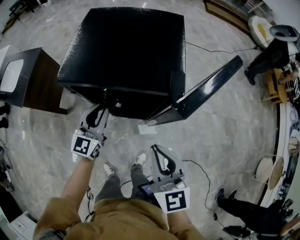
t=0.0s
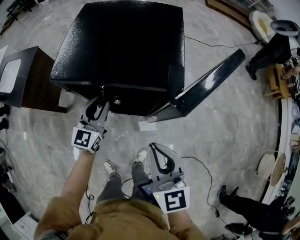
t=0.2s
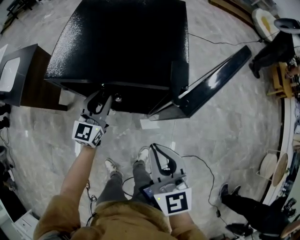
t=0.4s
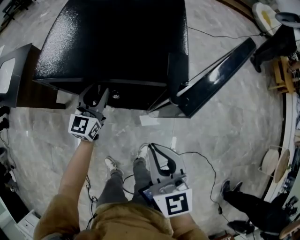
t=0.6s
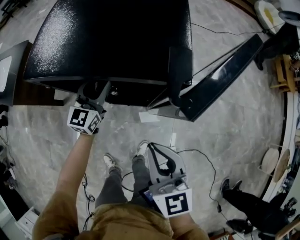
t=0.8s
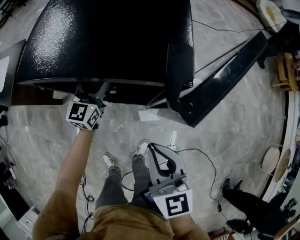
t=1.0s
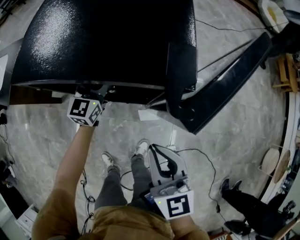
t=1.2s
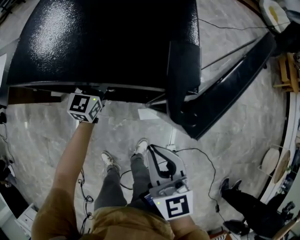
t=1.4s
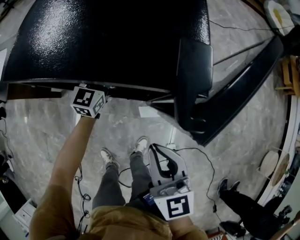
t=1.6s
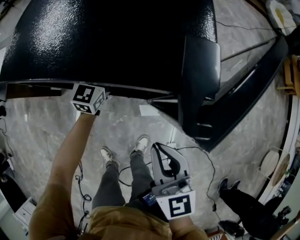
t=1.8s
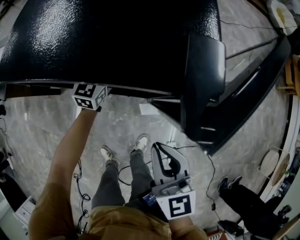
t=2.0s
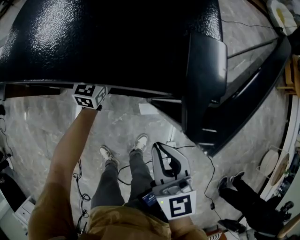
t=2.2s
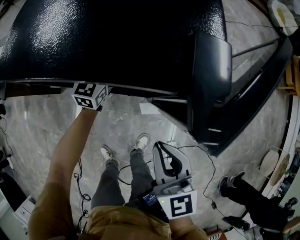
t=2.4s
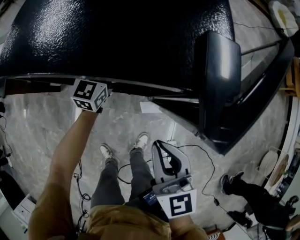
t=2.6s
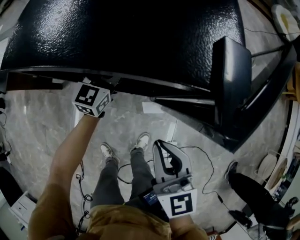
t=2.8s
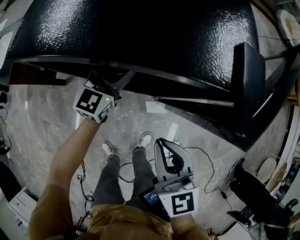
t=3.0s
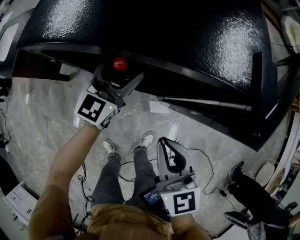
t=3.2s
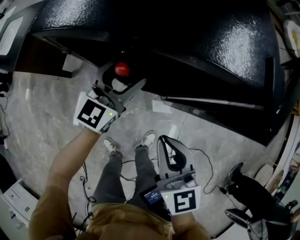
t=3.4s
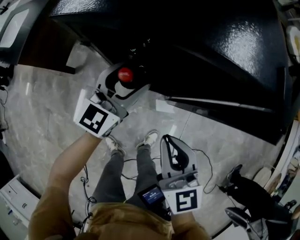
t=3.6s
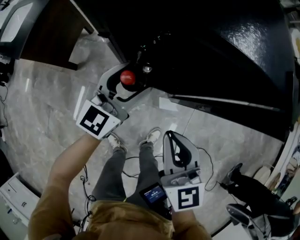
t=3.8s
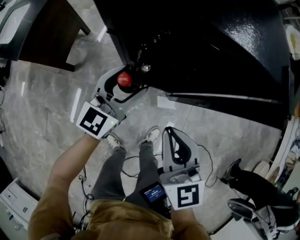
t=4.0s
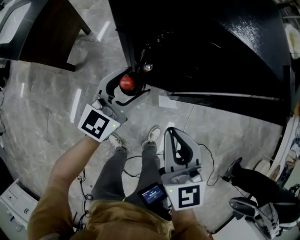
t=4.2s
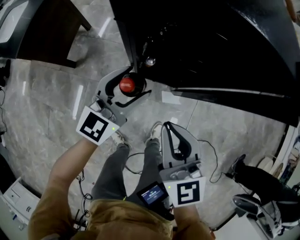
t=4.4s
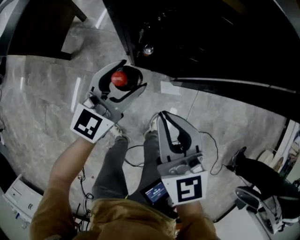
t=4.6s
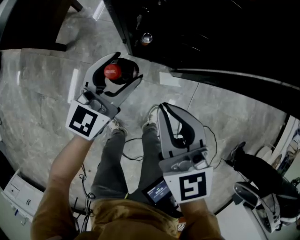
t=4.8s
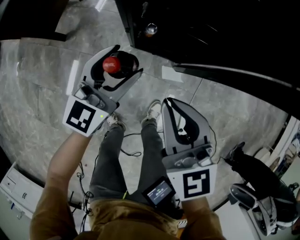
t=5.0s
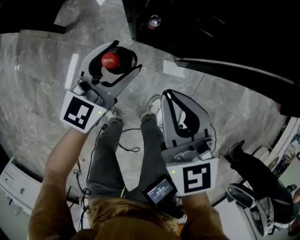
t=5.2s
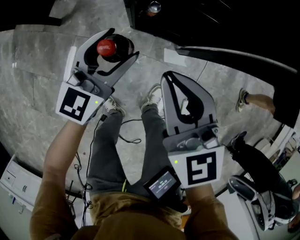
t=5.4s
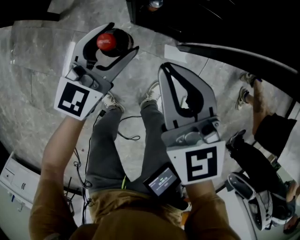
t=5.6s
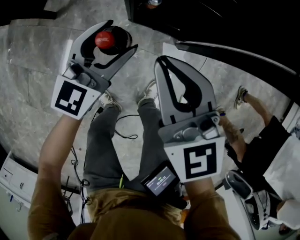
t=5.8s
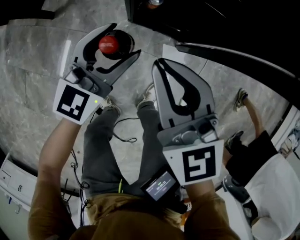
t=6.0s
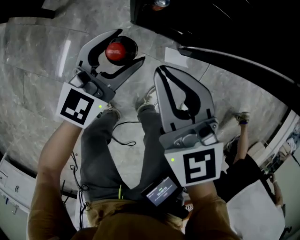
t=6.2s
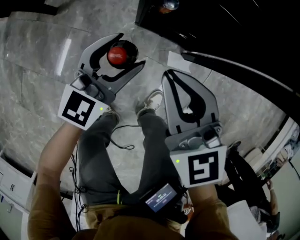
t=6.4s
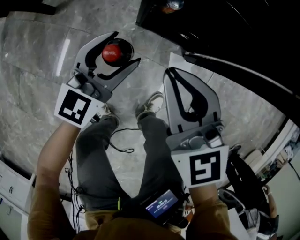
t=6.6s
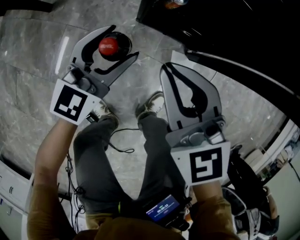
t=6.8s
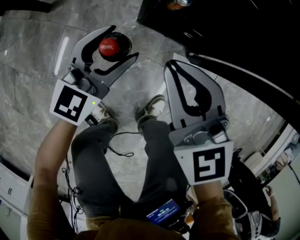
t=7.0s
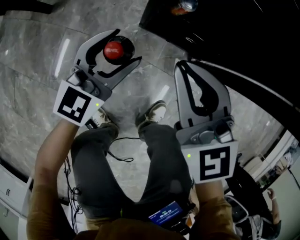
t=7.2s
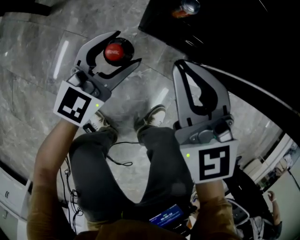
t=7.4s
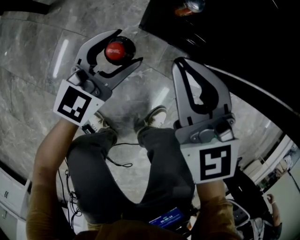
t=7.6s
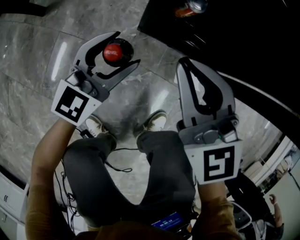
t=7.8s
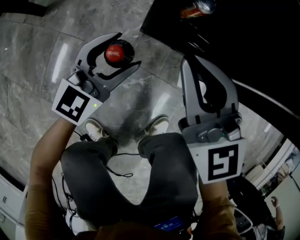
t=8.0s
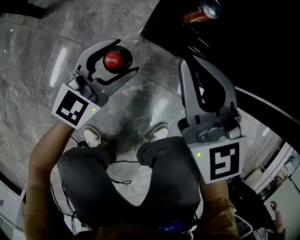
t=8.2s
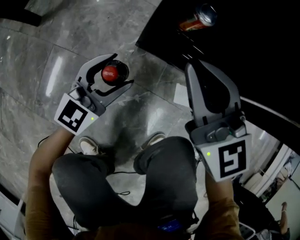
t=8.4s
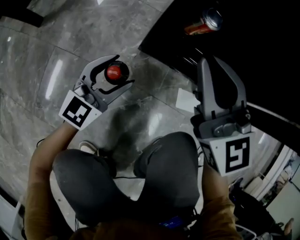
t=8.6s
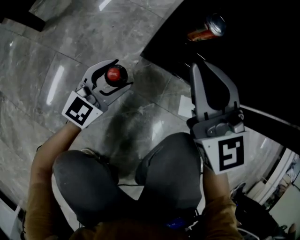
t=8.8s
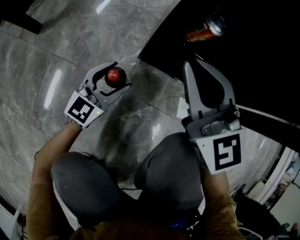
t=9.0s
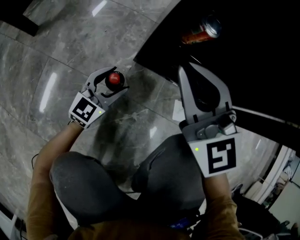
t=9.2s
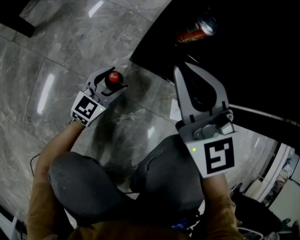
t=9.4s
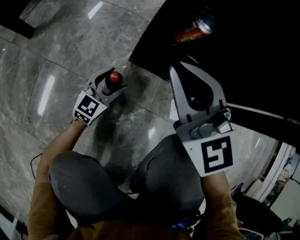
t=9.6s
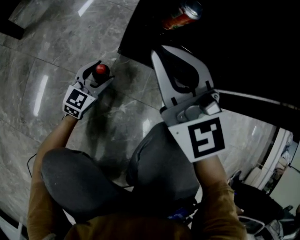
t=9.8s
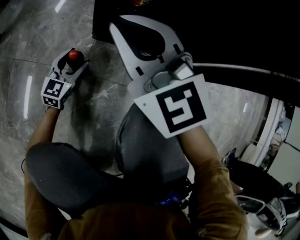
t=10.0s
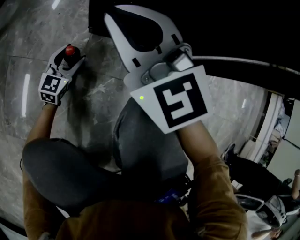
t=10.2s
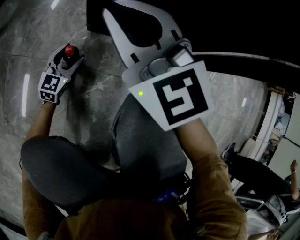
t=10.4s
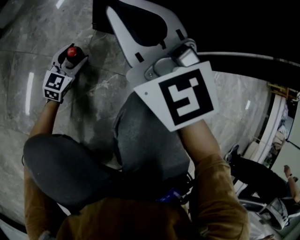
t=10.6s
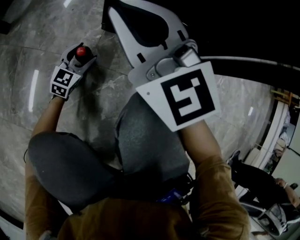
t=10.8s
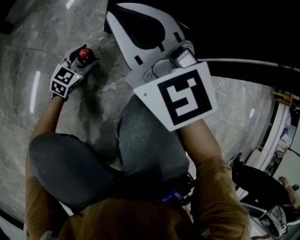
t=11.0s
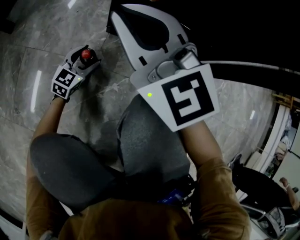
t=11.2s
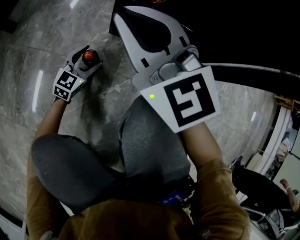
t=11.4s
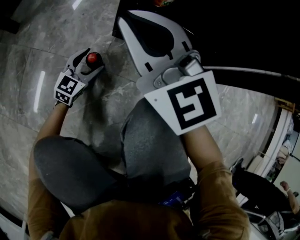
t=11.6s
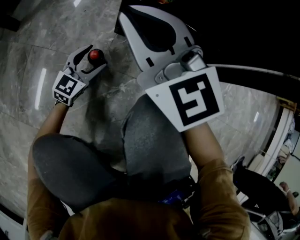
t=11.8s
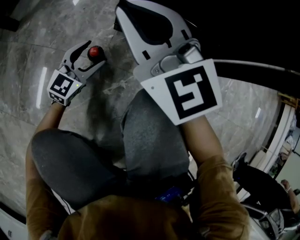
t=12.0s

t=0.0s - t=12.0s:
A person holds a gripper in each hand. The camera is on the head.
t=0.0s - t=1.6s: The left gripper moves forward and downward, roughly 25 cm, and opens its fingers. The right gripper heads downward and forward, covering roughly 15 cm.
t=1.6s - t=3.0s: The right gripper moves to the left, about 5 cm.
t=3.0s - t=4.4s: The right gripper moves to the left, some 20 cm, while the left gripper shifts approximately 25 cm backward and to the left.
t=4.4s - t=6.0s: The grippers both shift downward by roughly 25 cm.
t=6.0s - t=7.6s: The right gripper heads forward, covering roughly 5 cm, and moves some 15 cm downward and comes back. The left gripper moves about 20 cm downward and comes back.
t=7.6s - t=9.0s: The right gripper moves downward and forward, some 10 cm, while the left gripper heads downward, covering approximately 20 cm.
t=9.0s - t=10.4s: The left gripper goes approximately 10 cm downward.
t=10.4s - t=12.0s: The left gripper goes roughly 5 cm upward.

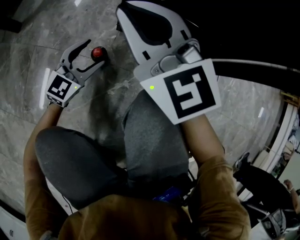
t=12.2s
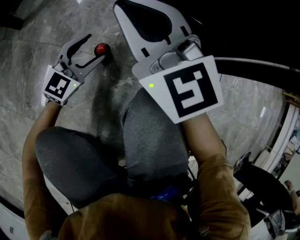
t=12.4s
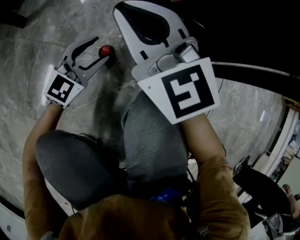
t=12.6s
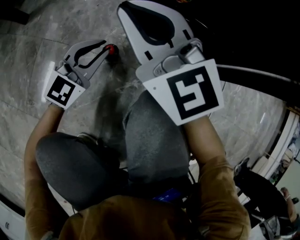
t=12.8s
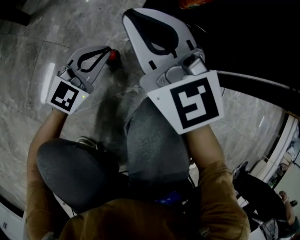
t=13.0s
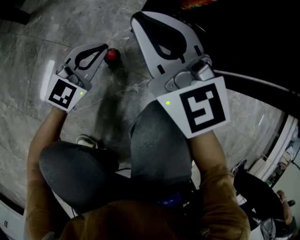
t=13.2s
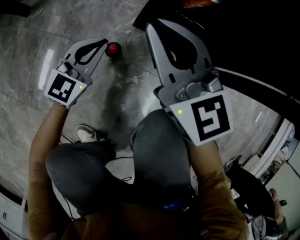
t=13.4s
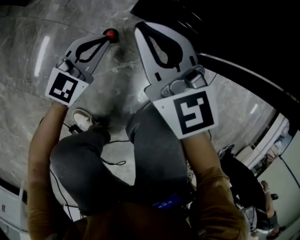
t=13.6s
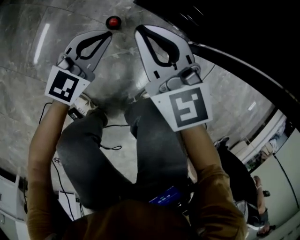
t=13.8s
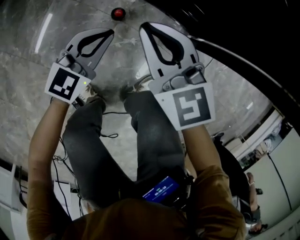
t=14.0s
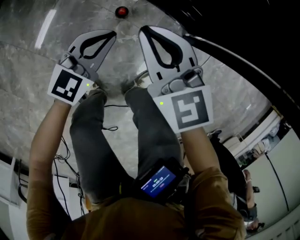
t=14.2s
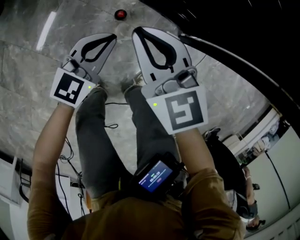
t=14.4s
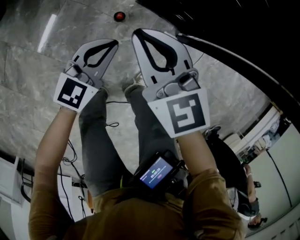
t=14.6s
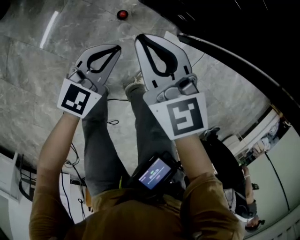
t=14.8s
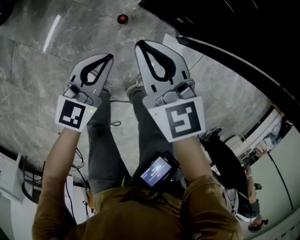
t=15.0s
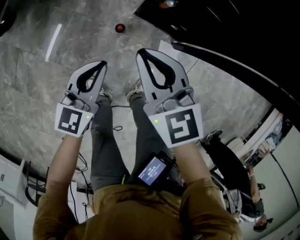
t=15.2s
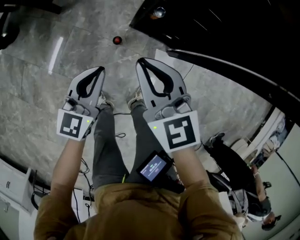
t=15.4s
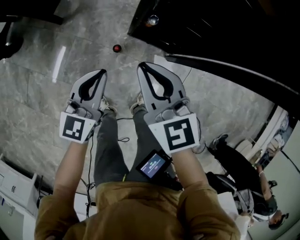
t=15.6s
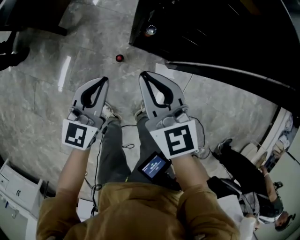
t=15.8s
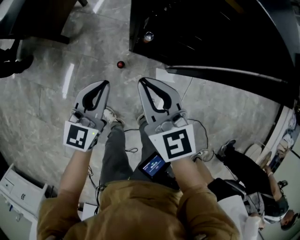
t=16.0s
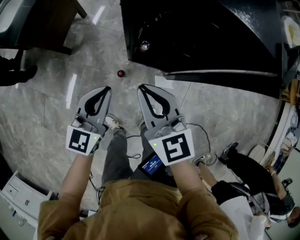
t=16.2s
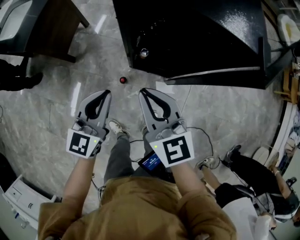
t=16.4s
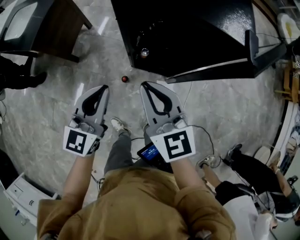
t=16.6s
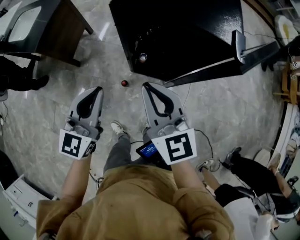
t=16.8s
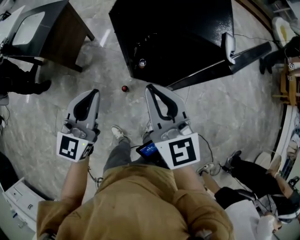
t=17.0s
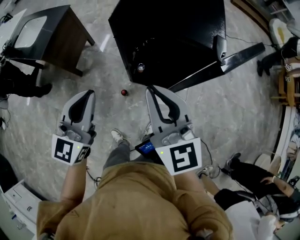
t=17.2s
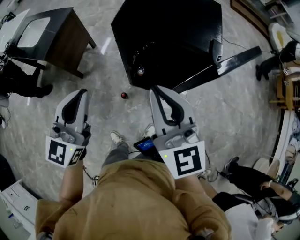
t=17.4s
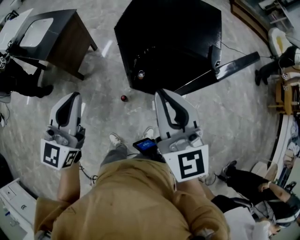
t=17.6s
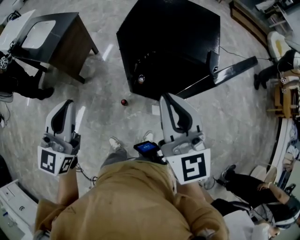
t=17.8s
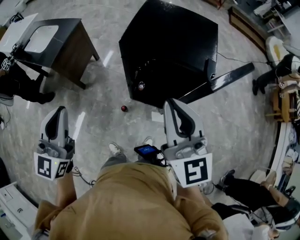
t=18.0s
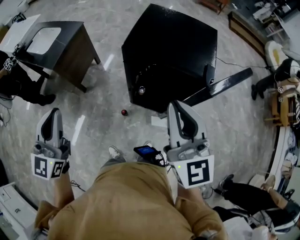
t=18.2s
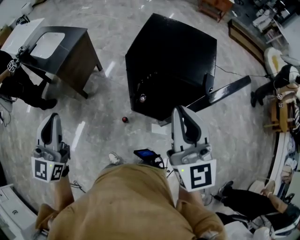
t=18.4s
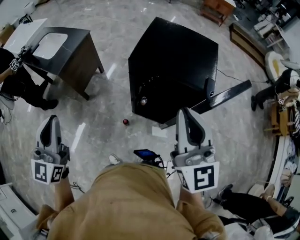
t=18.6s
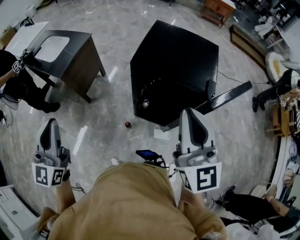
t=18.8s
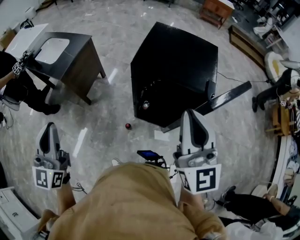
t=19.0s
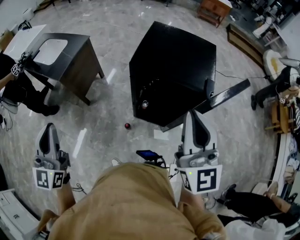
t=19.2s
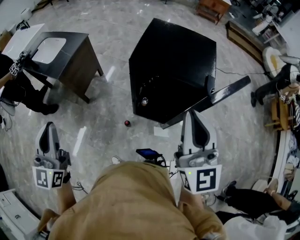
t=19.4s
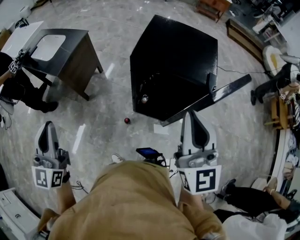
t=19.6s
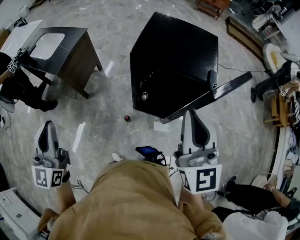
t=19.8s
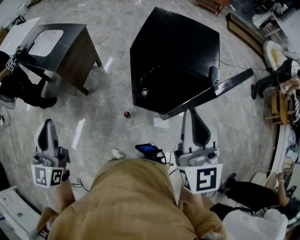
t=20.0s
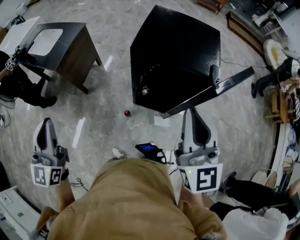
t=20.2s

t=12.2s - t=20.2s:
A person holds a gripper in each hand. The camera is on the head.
t=12.2s - t=13.8s: The left gripper heads upward, covering about 15 cm, and closes its fingers; the right gripper shifts about 5 cm backward, and changes its angle by roughly 20 degrees.
t=13.8s - t=15.4s: The grippers both shift upward by roughly 35 cm.
t=15.4s - t=17.0s: The left gripper heads upward, covering about 35 cm, and turns by some 20 degrees. The right gripper goes about 30 cm upward and to the right, and swivels about 20 degrees.
t=17.0s - t=18.6s: The right gripper goes roughly 15 cm upward, while the left gripper travels upward and to the left by some 25 cm, and changes its angle by roughly 20 degrees.
t=18.6s - t=20.2s: The left gripper shifts by about 5 cm.

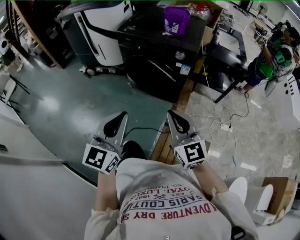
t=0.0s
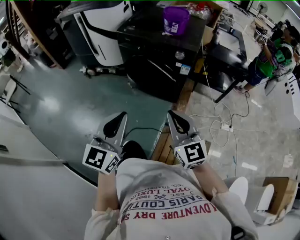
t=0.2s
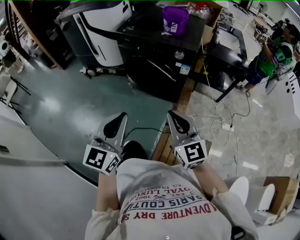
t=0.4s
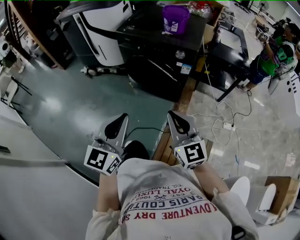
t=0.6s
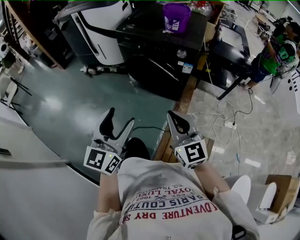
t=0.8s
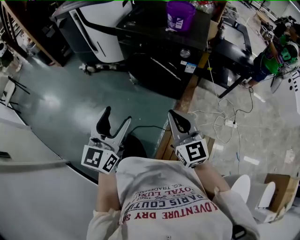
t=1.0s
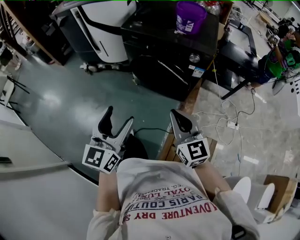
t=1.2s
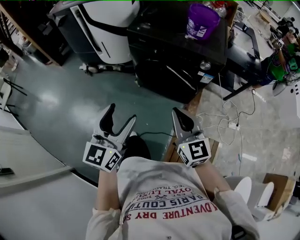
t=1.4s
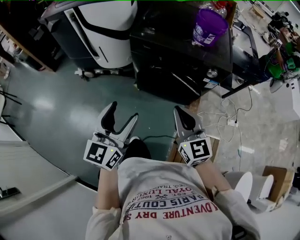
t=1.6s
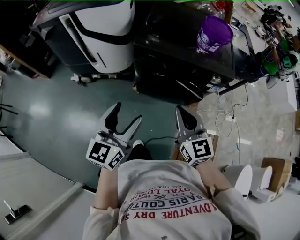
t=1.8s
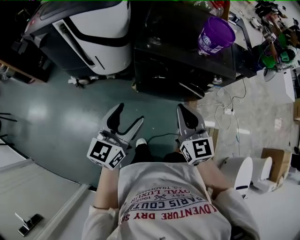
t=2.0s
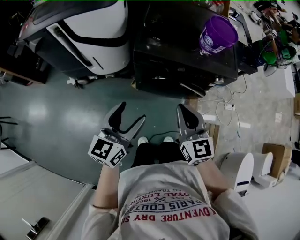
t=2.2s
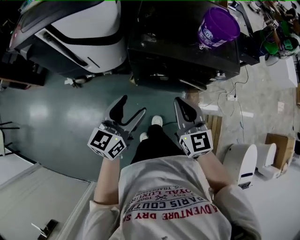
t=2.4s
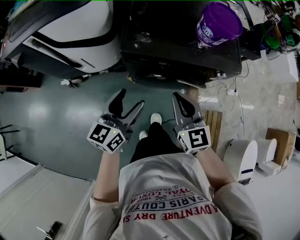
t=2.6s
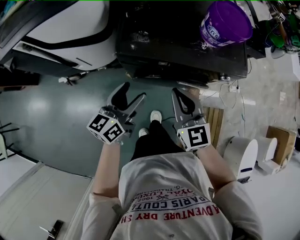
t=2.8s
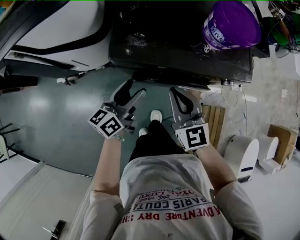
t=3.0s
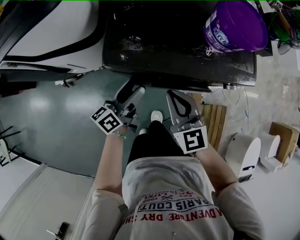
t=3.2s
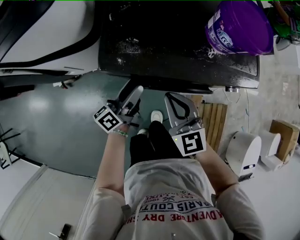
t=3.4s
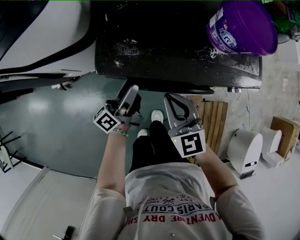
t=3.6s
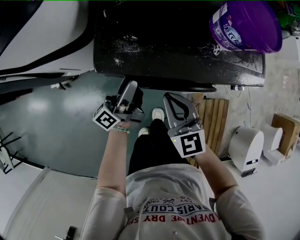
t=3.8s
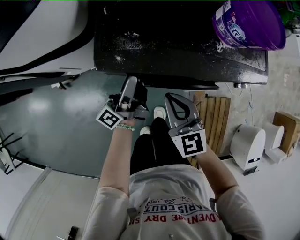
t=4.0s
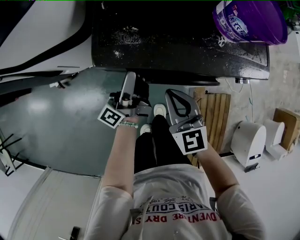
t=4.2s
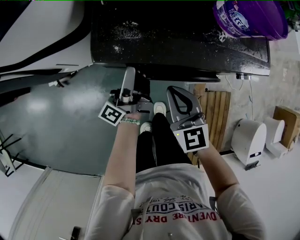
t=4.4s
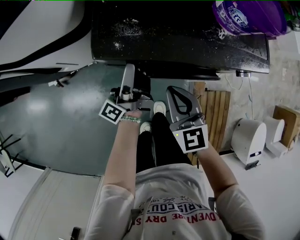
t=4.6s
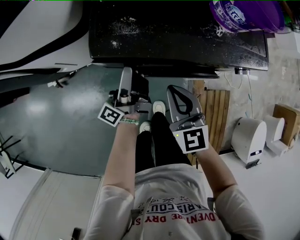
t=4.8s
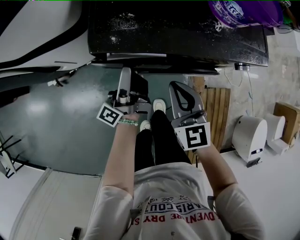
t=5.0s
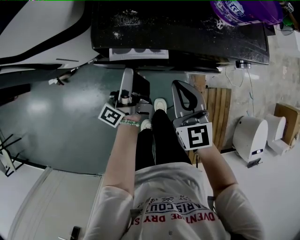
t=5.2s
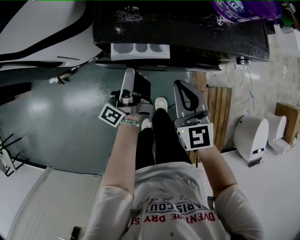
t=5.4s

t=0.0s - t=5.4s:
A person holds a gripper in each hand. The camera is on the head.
t=0.0s - t=1.4s: Both grippers move forward and to the left, roughly 20 cm. The left gripper opens.
t=1.4s - t=2.8s: The left gripper is displaced forward by approximately 35 cm, and swivels about 40 degrees; the right gripper shifts approximately 30 cm forward and to the left.
t=2.8s - t=4.0s: The right gripper moves downward, about 10 cm. Meanwhile the left gripper is displaced forward and downward by some 15 cm, and changes its angle by some 50 degrees.
t=4.0s - t=5.4s: The left gripper is displaced backward by some 5 cm.
